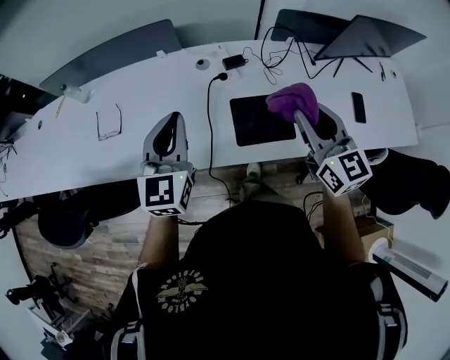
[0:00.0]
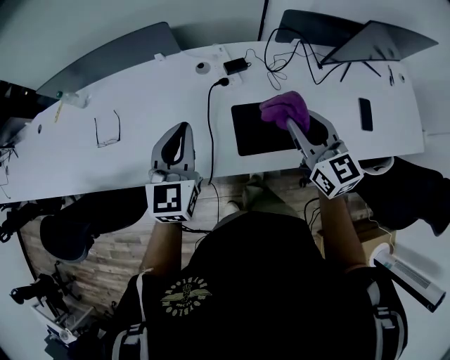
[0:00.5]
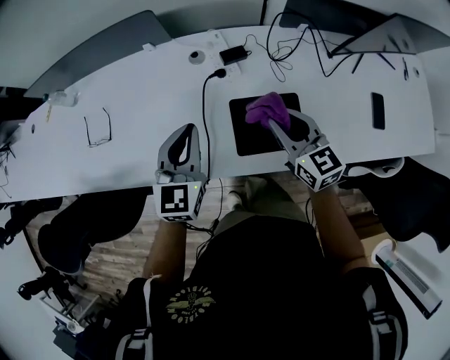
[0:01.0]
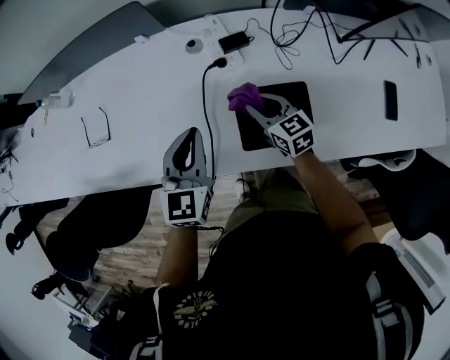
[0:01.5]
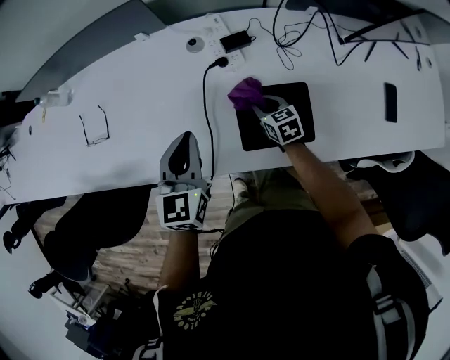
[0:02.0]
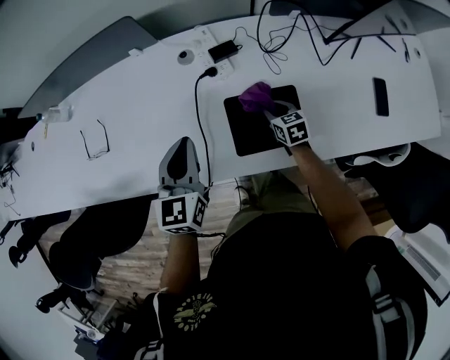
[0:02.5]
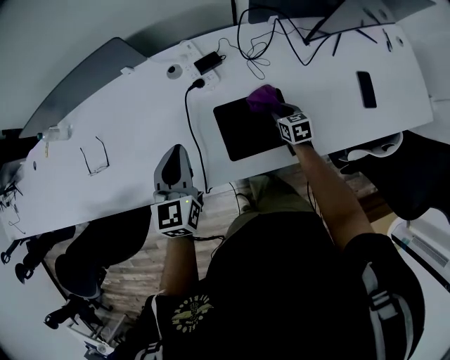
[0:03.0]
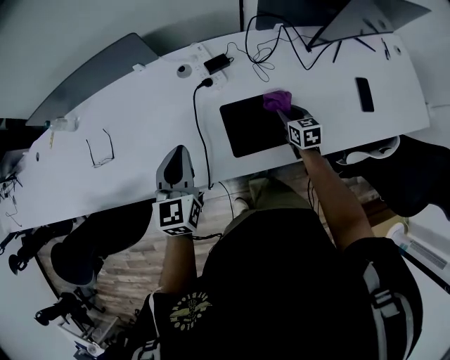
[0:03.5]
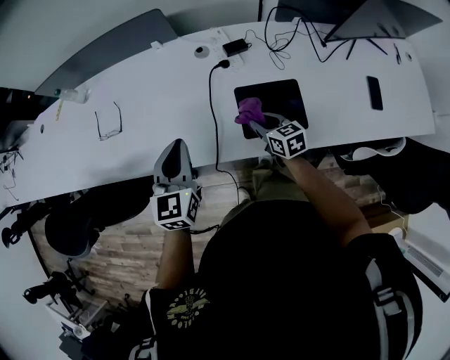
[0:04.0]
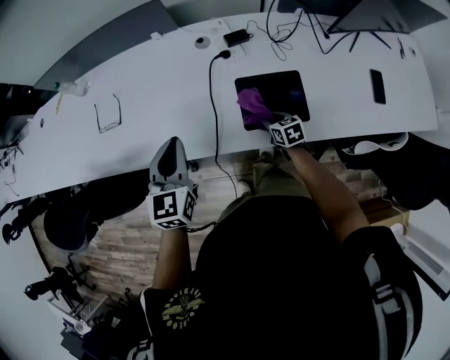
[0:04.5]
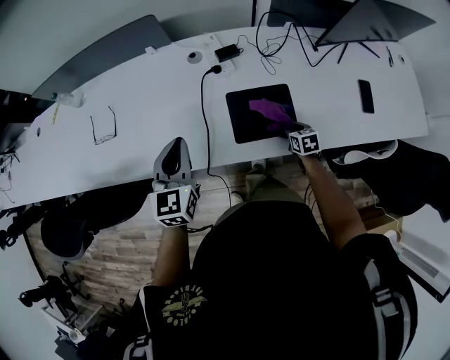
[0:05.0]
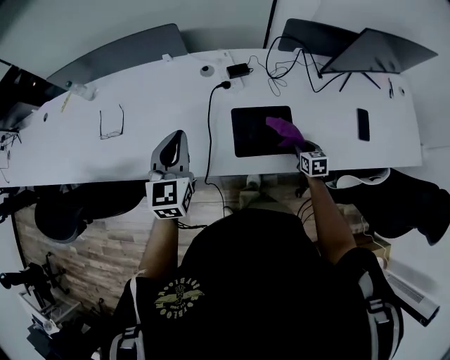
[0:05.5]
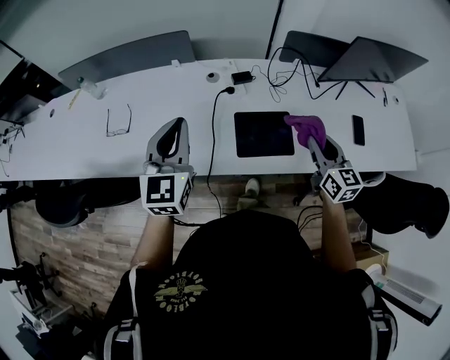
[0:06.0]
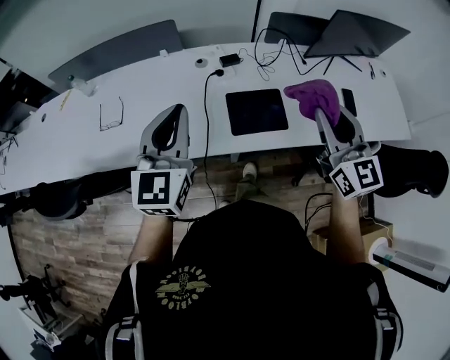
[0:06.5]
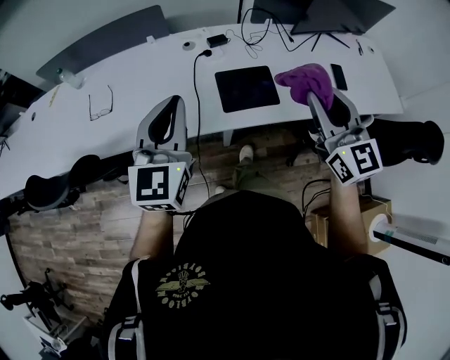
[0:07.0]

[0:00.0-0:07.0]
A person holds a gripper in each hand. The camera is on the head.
0:00.0 to 0:02.0: The left gripper travels downward by some 15 cm. Meanwhile the right gripper goes some 40 cm downward, and angles its fingers downward, by roughly 40 degrees.
0:02.0 to 0:03.5: The right gripper is displaced to the right by some 15 cm; the left gripper ends up approximately 5 cm from where it was.
0:03.5 to 0:05.0: The right gripper travels backward and downward by about 10 cm, and travels to the left and back again, about 15 cm each way.
0:05.0 to 0:07.0: The right gripper travels upward by about 50 cm, and tilts its fingers about 50 degrees upward, while the left gripper travels upward and backward by approximately 20 cm.

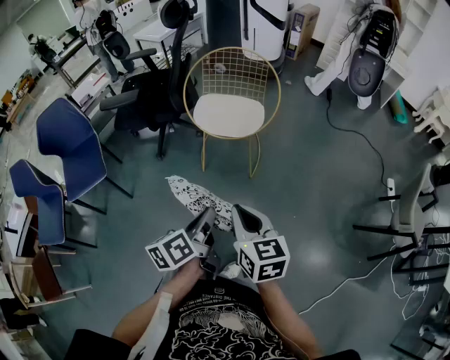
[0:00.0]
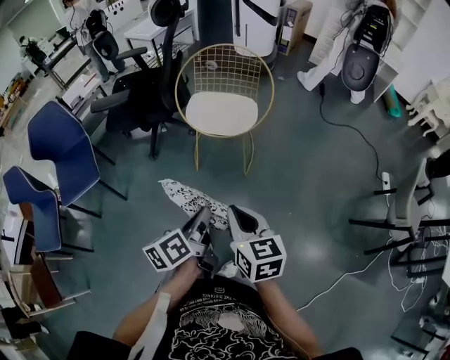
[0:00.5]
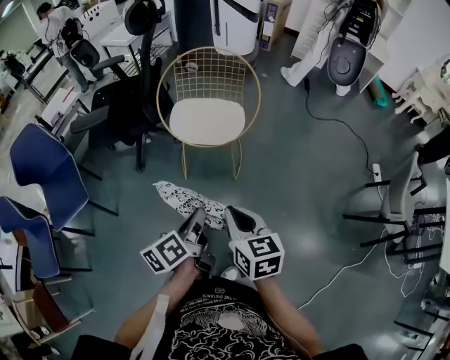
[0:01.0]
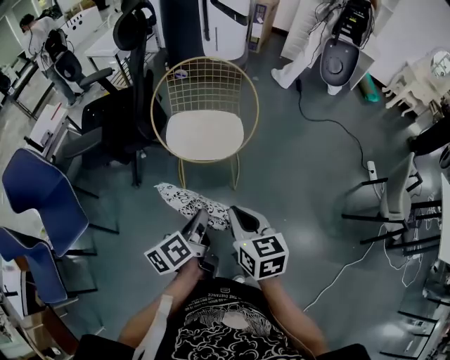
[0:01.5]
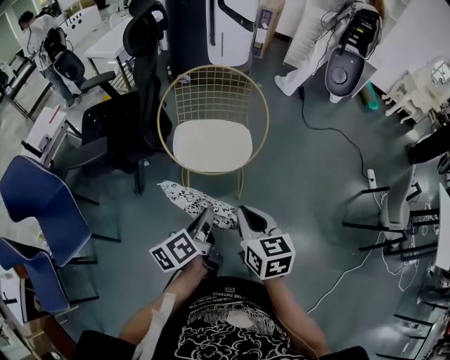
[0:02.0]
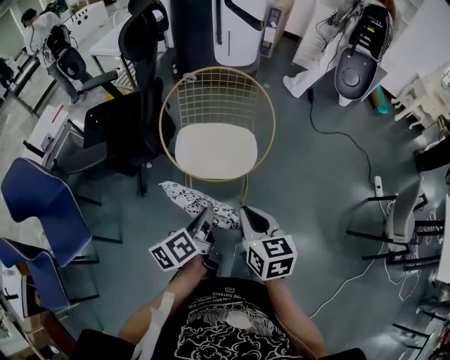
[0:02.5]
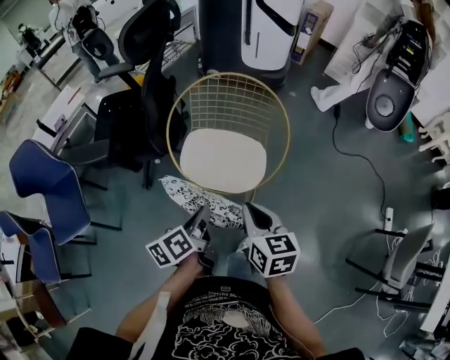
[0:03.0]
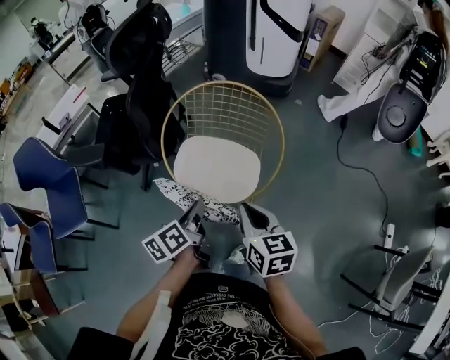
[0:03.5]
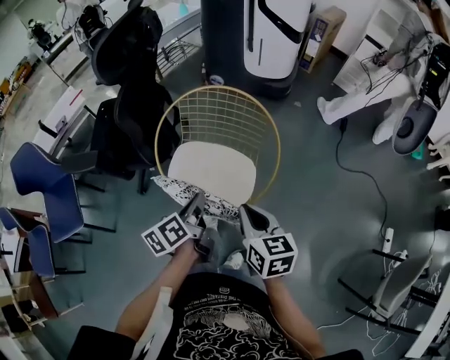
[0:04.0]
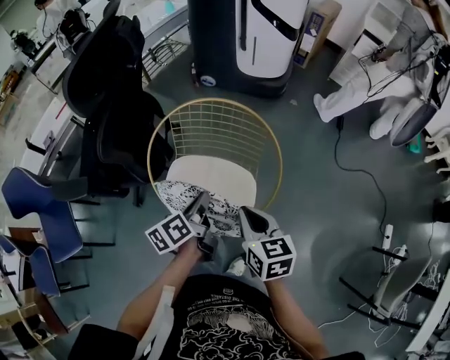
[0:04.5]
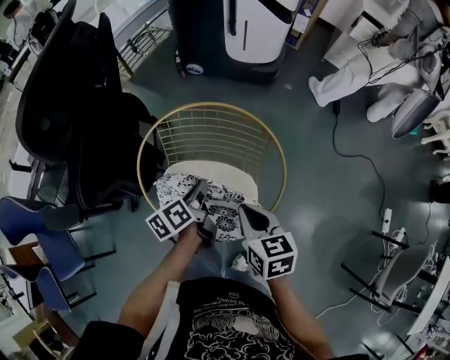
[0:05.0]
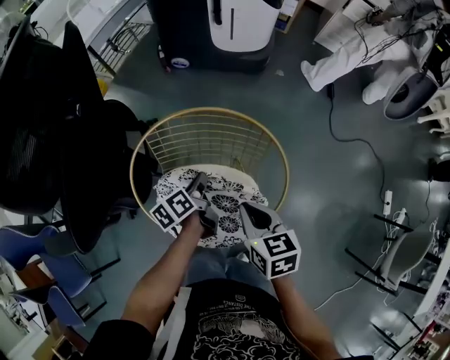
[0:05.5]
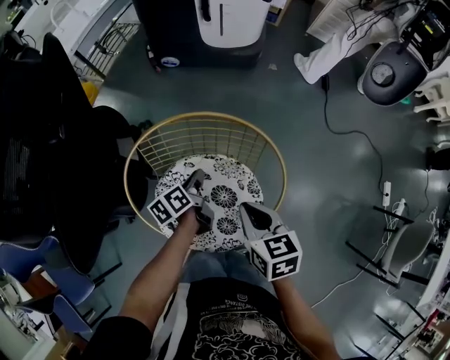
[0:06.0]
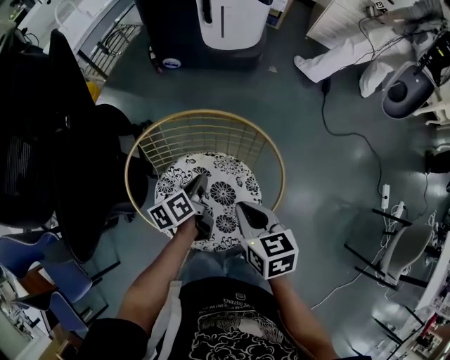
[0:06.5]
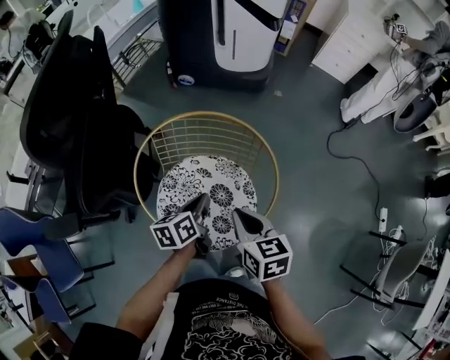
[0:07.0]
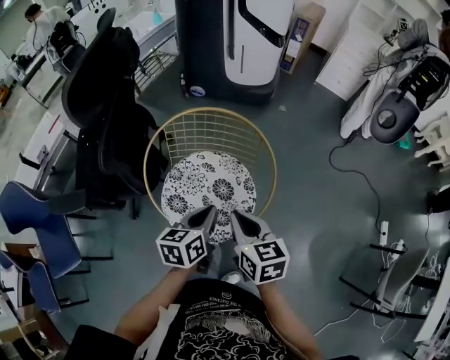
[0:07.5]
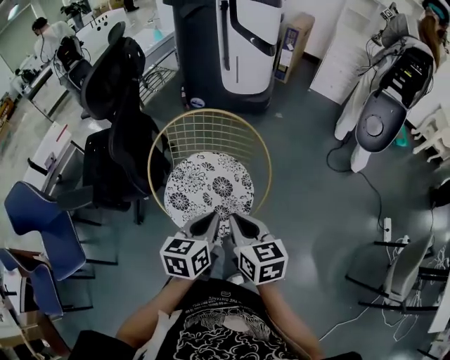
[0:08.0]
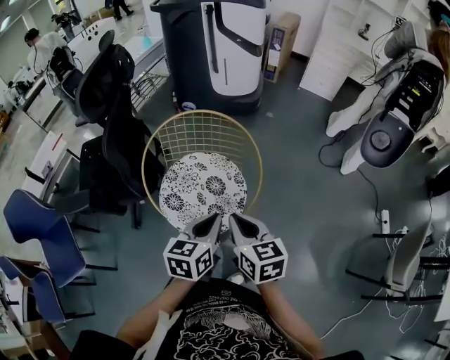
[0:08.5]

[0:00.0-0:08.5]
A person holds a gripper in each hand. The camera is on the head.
0:00.0 to 0:02.0: Both grippers travel together forward, approximately 20 cm.
0:02.0 to 0:04.0: The left gripper is displaced forward by approximately 25 cm, while the right gripper shifts about 25 cm forward and to the right.
0:04.0 to 0:06.5: Both grippers move forward and downward, approximately 25 cm. The left gripper swivels some 20 degrees.
0:06.5 to 0:08.5: The left gripper shifts about 35 cm backward and upward, and rotates some 40 degrees. The right gripper goes some 20 cm backward and upward.

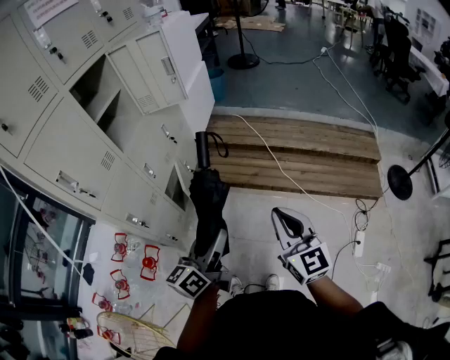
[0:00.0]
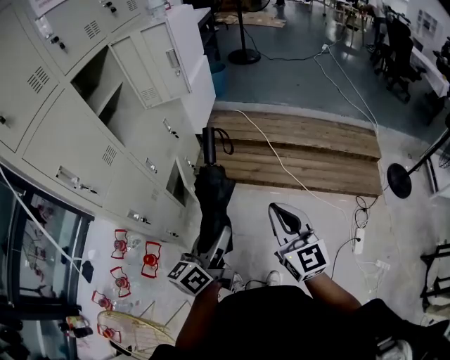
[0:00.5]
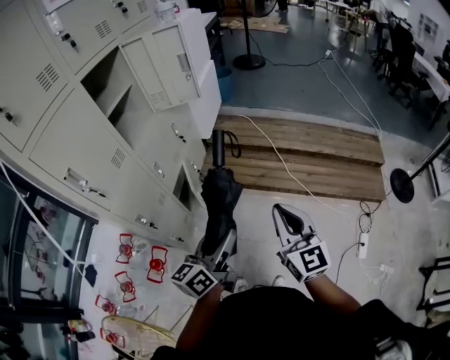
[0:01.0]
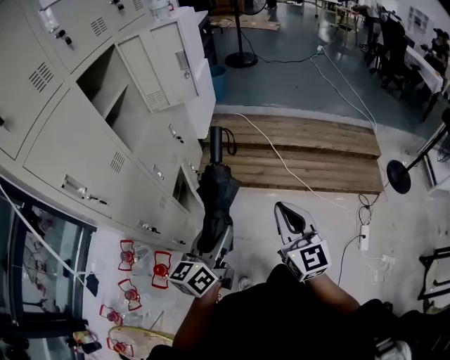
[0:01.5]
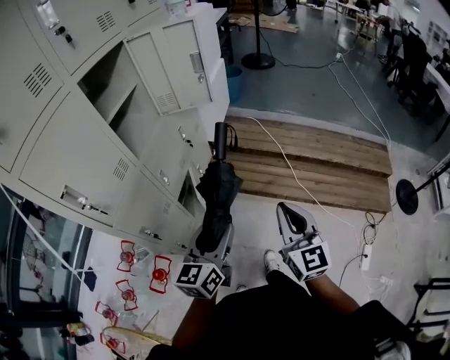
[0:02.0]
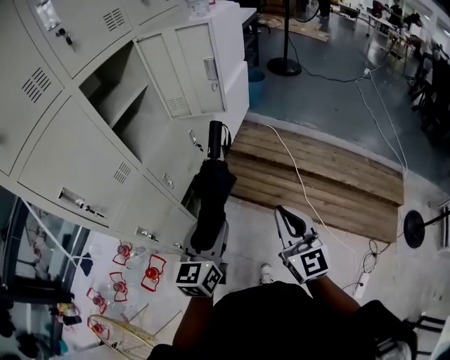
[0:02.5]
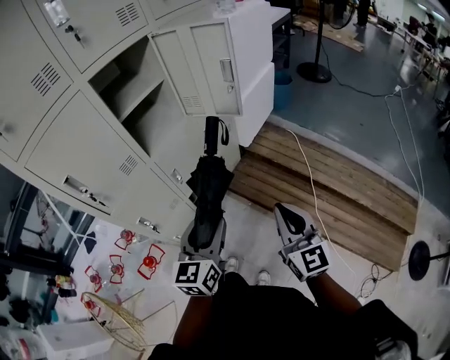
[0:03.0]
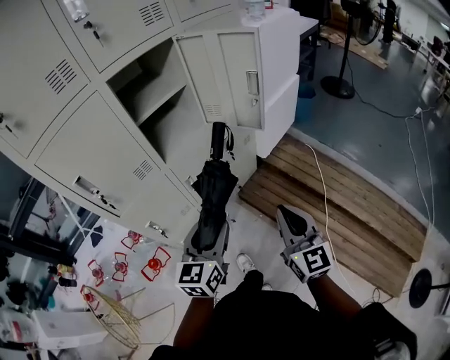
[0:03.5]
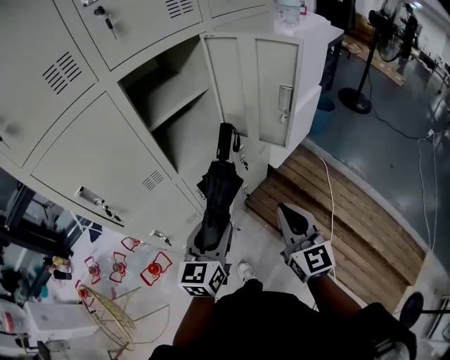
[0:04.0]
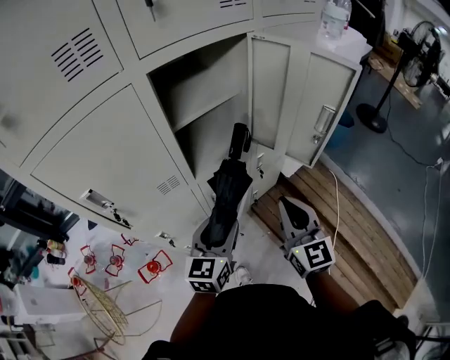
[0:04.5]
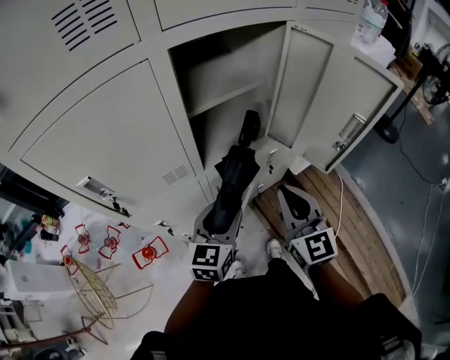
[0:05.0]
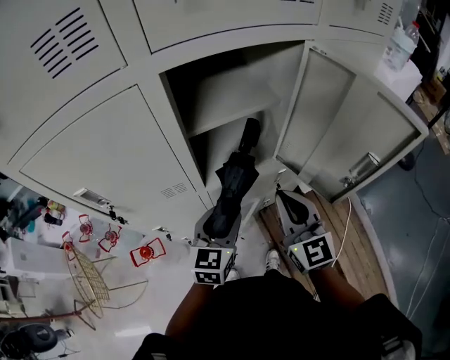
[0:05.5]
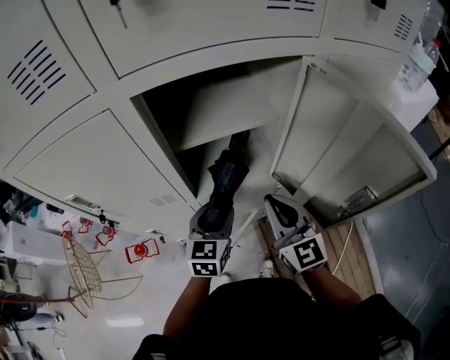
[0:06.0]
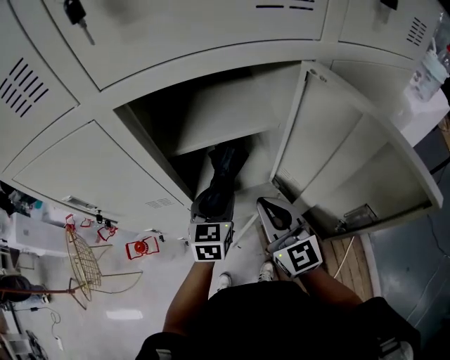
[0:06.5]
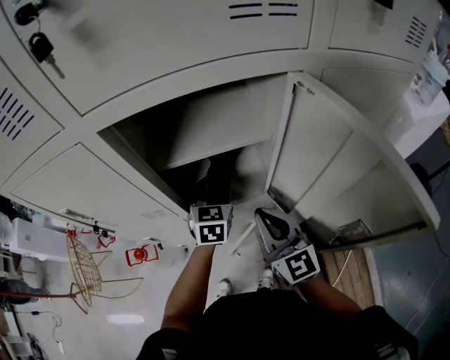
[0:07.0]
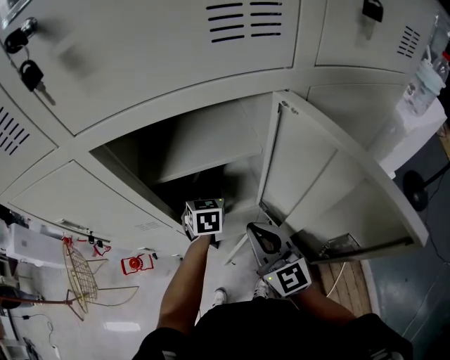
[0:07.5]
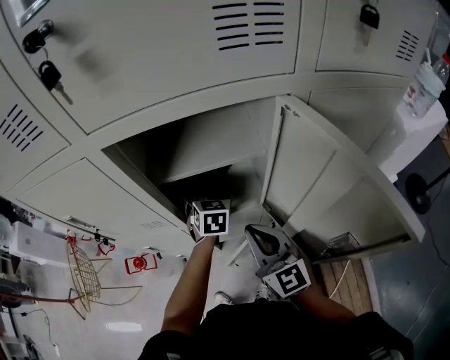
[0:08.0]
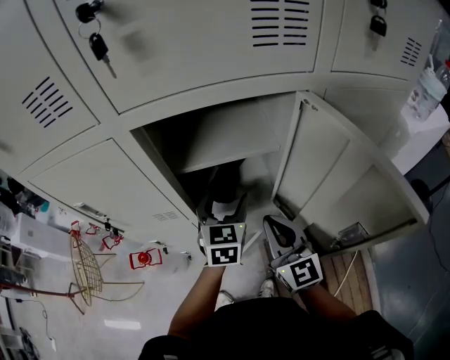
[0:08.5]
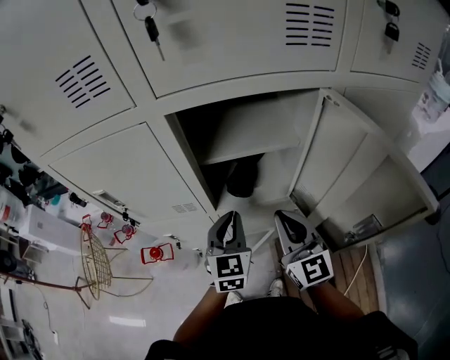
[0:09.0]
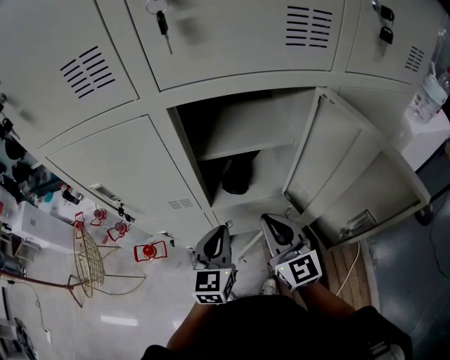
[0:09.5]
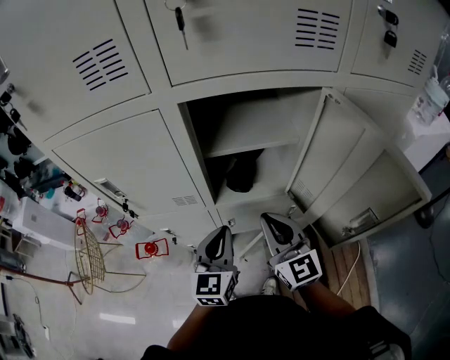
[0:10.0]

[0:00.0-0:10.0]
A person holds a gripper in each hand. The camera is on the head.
0:00.0 to 0:02.0: The grippers both shift forward and to the left by approximately 15 cm. The left gripper turns by some 20 degrees.
0:02.0 to 0:04.0: The left gripper ends up about 20 cm from where it was, and changes its angle by approximately 40 degrees, while the right gripper changes place by roughly 30 cm, and rotates about 30 degrees.
0:04.0 to 0:06.0: The right gripper ends up approximately 30 cm from where it was, and changes its angle by some 30 degrees. The left gripper shifts by about 25 cm, and turns by some 30 degrees.
0:06.0 to 0:08.0: The left gripper moves forward, some 15 cm, rotates roughly 20 degrees, and opens up.
0:08.0 to 0:10.0: The right gripper changes place by some 5 cm; the left gripper moves backward and to the left, about 20 cm, swivels roughly 30 degrees, and closes up.

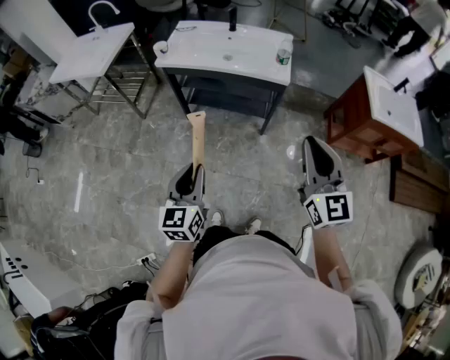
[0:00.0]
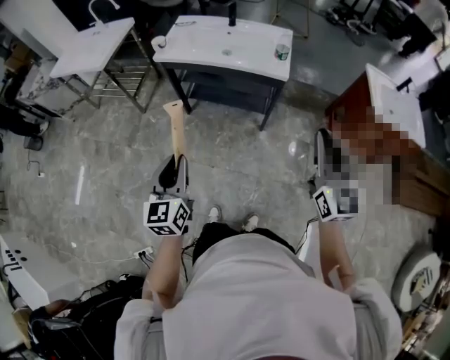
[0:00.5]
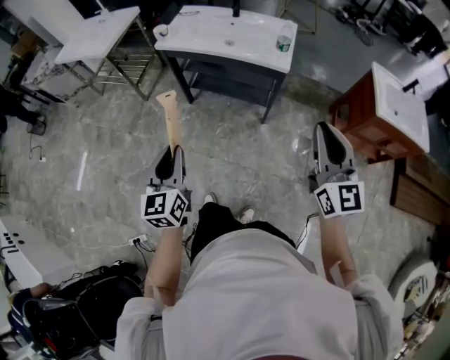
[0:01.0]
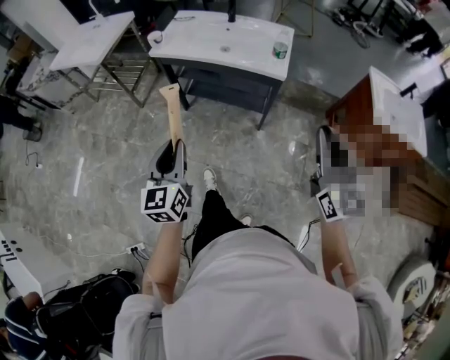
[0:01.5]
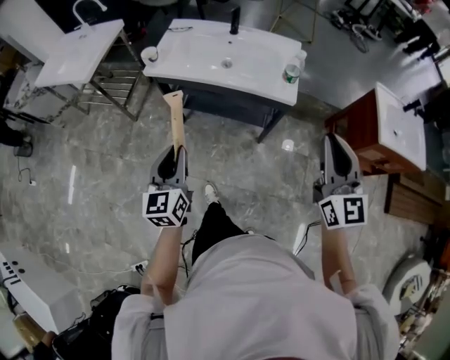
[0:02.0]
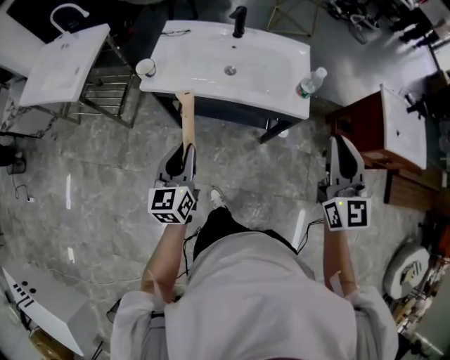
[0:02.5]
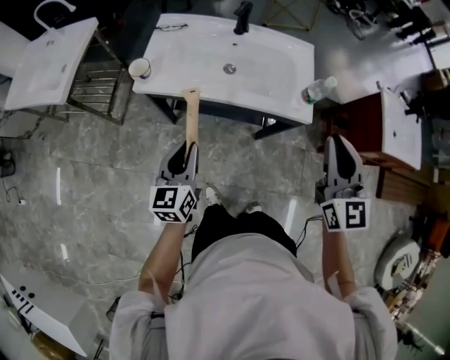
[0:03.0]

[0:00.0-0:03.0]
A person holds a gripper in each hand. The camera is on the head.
0:00.0 to 0:01.5: The right gripper travels to the right by roughly 10 cm, while the left gripper shifts roughly 5 cm forward.
0:01.5 to 0:03.0: The left gripper moves forward, roughly 30 cm; the right gripper shifts approximately 30 cm forward and to the left.
